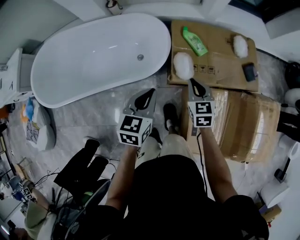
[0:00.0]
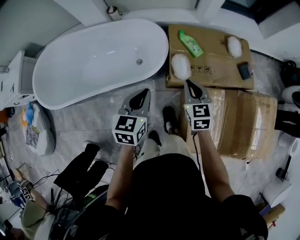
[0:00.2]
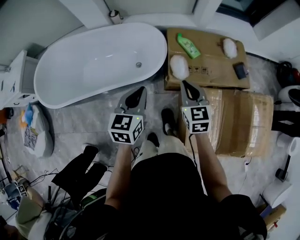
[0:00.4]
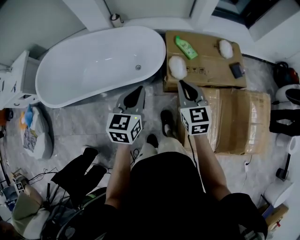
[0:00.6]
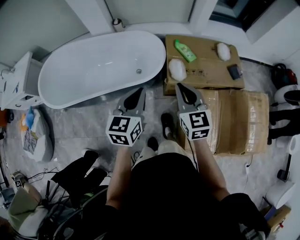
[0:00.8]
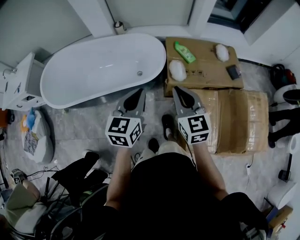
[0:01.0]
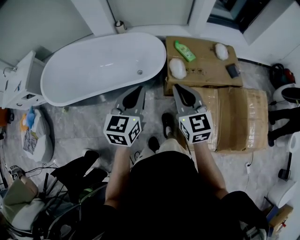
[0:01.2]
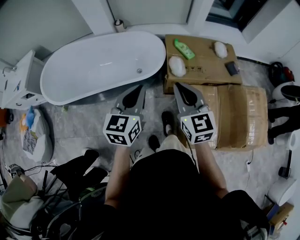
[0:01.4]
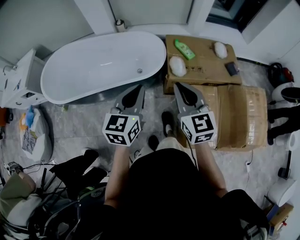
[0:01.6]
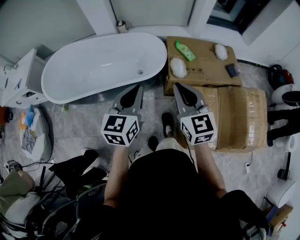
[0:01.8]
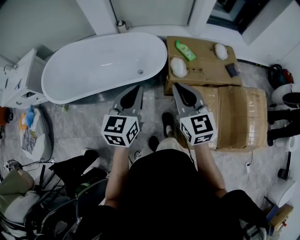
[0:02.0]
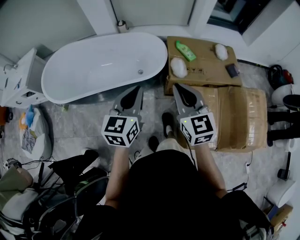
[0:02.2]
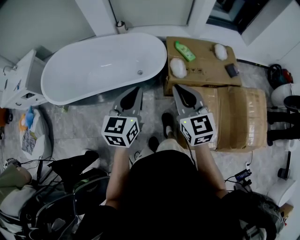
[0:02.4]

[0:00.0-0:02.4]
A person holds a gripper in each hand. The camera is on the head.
0:00.0 to 0:01.2: Both grippers travel together backward and upward, approximately 25 cm. The right gripper rotates approximately 20 degrees.
0:01.2 to 0:02.4: The right gripper is displaced backward by some 5 cm.

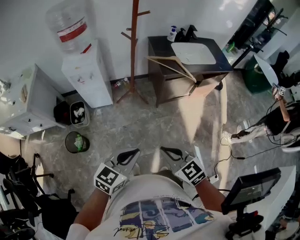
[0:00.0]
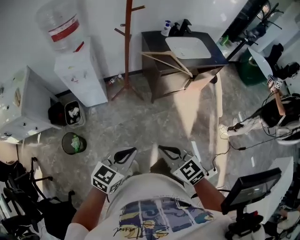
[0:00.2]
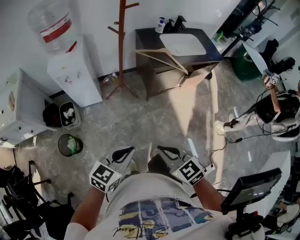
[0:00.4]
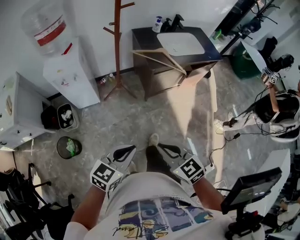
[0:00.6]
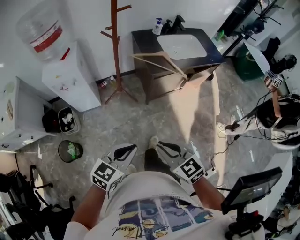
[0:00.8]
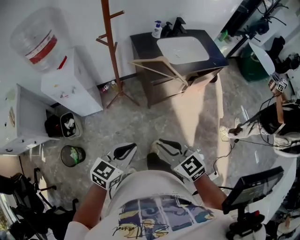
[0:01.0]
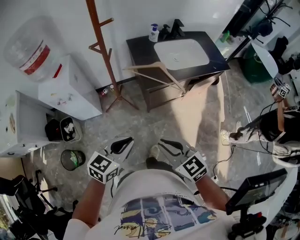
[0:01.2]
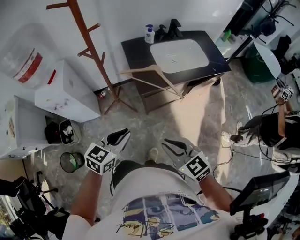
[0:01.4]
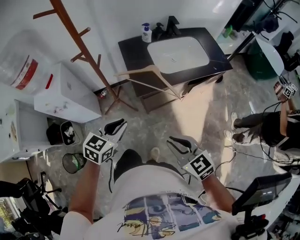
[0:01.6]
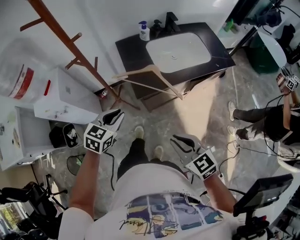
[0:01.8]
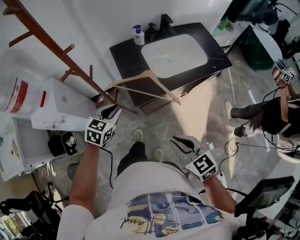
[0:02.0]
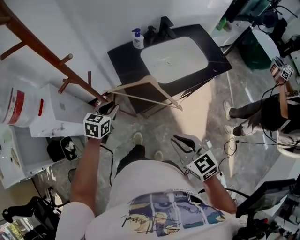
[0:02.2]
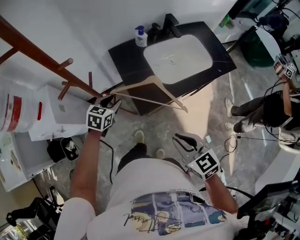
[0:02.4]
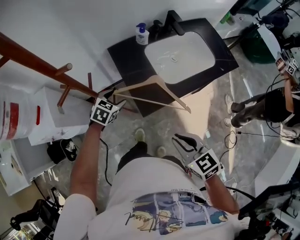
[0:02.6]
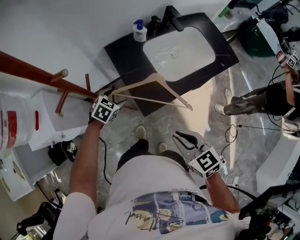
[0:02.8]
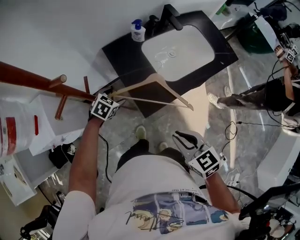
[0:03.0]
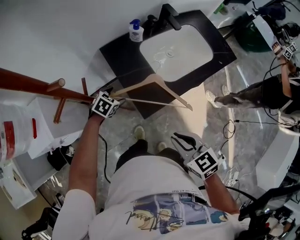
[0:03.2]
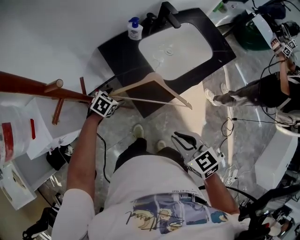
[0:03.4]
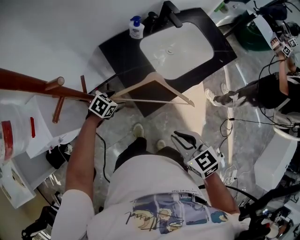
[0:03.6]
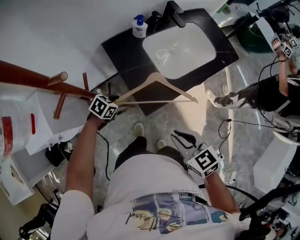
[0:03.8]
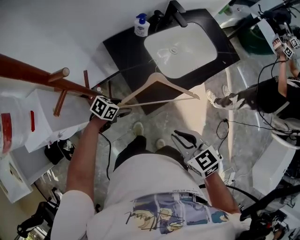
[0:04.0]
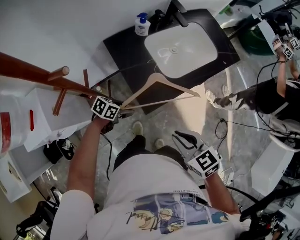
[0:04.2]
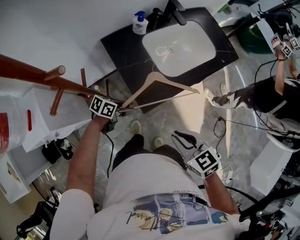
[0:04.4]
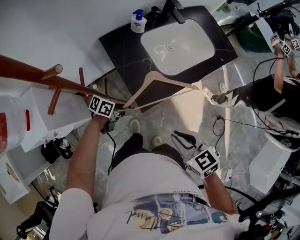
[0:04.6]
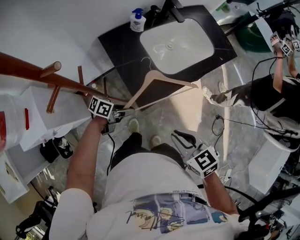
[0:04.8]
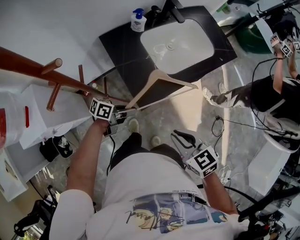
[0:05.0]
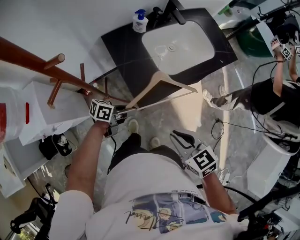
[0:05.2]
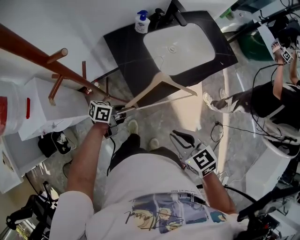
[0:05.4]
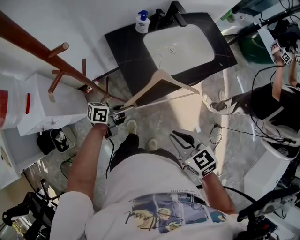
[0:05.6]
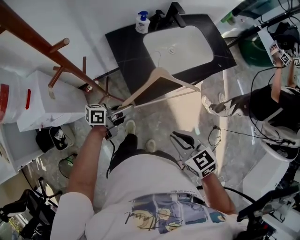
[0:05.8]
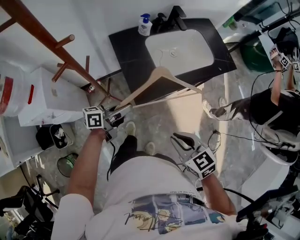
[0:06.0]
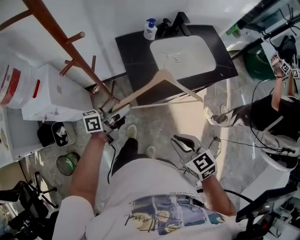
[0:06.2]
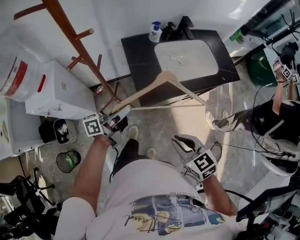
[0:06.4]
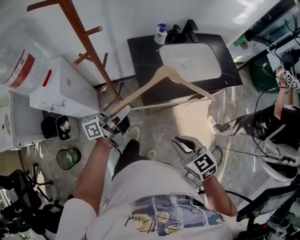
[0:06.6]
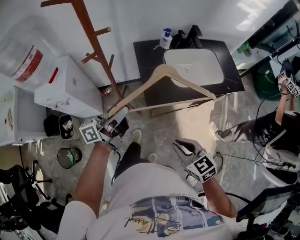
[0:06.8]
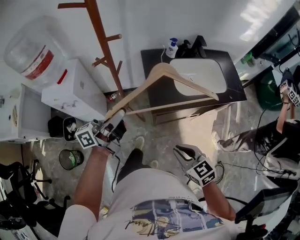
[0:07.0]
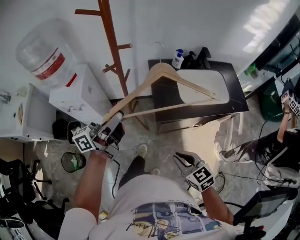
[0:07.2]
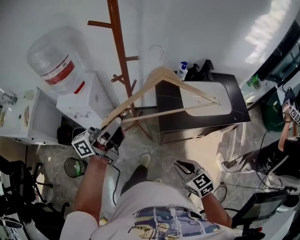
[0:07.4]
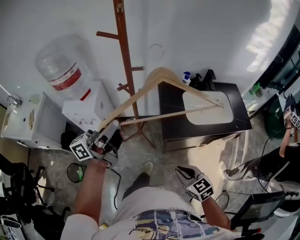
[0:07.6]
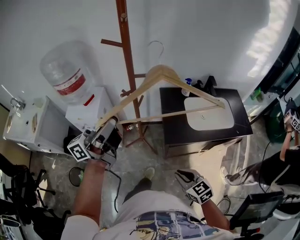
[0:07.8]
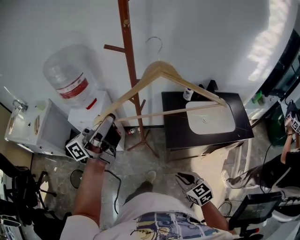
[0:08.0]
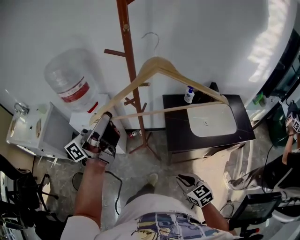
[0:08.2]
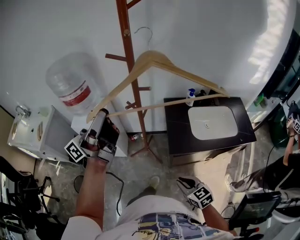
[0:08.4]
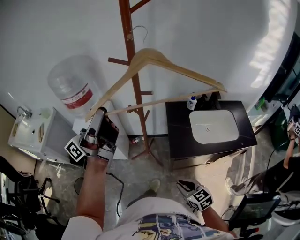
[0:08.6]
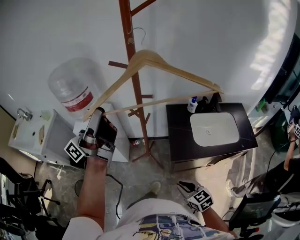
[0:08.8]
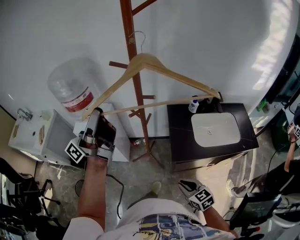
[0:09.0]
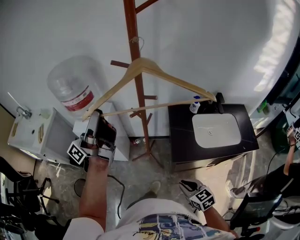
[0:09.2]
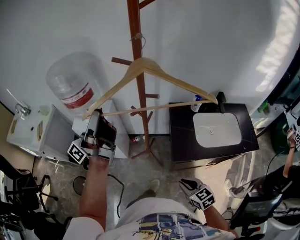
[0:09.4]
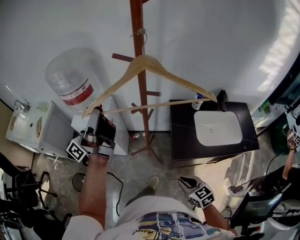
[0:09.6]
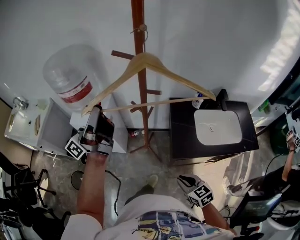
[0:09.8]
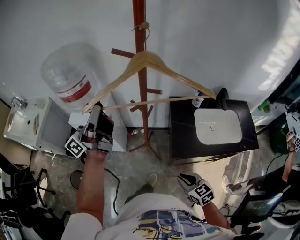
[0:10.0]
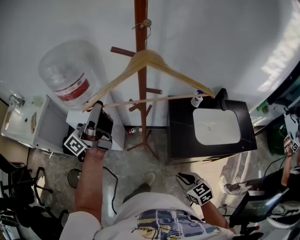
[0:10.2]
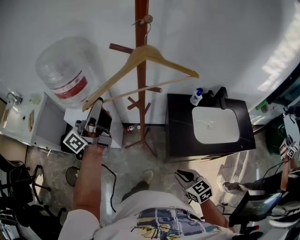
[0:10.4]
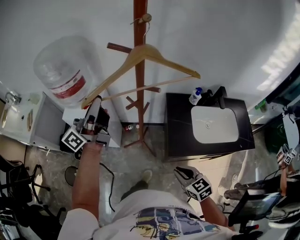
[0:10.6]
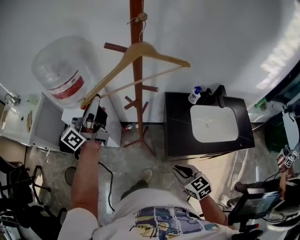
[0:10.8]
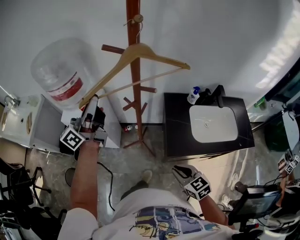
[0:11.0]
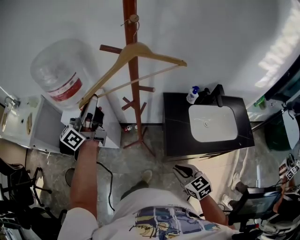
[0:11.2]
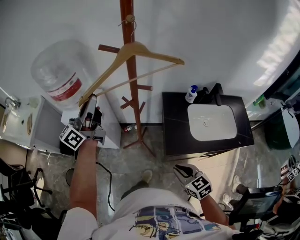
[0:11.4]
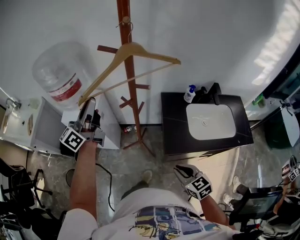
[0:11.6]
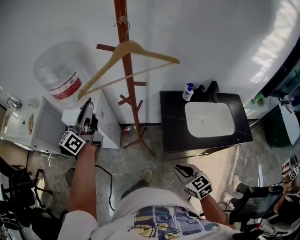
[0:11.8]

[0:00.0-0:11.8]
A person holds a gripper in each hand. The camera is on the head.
0:00.0 to 0:01.4: The left gripper goes about 30 cm forward, while the right gripper travels forward and to the right by approximately 25 cm.
0:01.4 to 0:03.0: The right gripper travels forward by roughly 20 cm, and turns by some 20 degrees. The left gripper travels forward and downward by about 40 cm, tips its fingers downward by approximately 30 degrees, and opens up.
0:03.0 to 0:04.4: The left gripper ends up roughly 10 cm from where it was, swivels some 50 degrees, and closes up.
0:04.4 to 0:06.0: The right gripper ends up approximately 5 cm from where it was, while the left gripper goes some 15 cm upward, turns by about 40 degrees, and closes its fingers.
0:06.0 to 0:07.4: The left gripper travels upward and to the left by about 30 cm, and changes its angle by about 40 degrees; the right gripper ends up about 5 cm from where it was.
0:07.4 to 0:08.8: The left gripper shifts approximately 20 cm upward and to the left, and changes its angle by about 20 degrees.
0:08.8 to 0:10.4: The right gripper is displaced forward by about 5 cm. Meanwhile the left gripper shifts approximately 15 cm forward and downward.
0:10.4 to 0:11.8: The left gripper changes its angle by roughly 30 degrees.

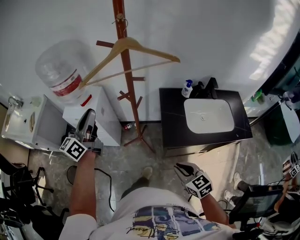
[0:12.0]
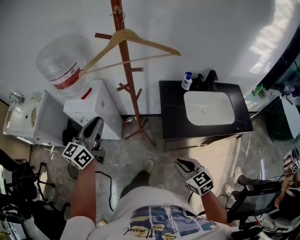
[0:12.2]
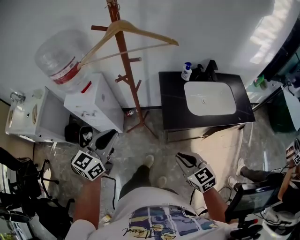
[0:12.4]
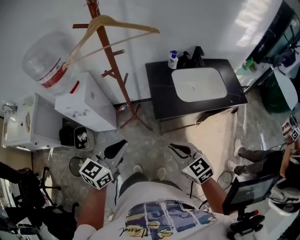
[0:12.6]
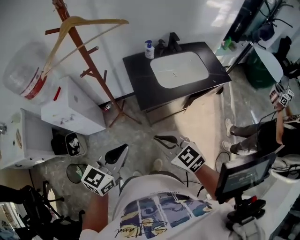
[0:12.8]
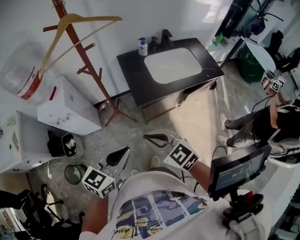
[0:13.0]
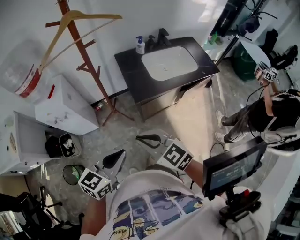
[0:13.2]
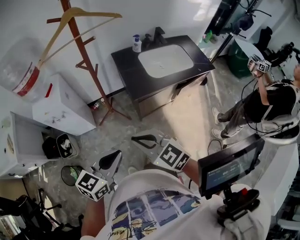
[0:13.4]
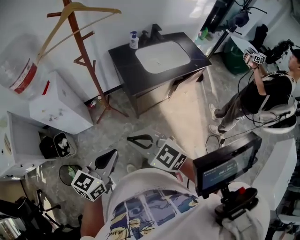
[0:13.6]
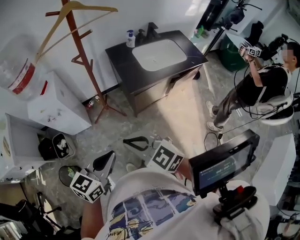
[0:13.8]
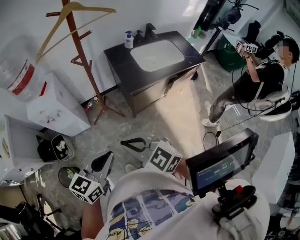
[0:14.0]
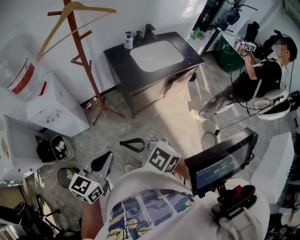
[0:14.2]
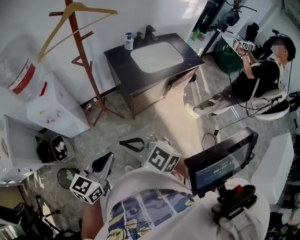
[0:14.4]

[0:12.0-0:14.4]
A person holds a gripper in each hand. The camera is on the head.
0:12.0 to 0:13.2: The left gripper travels backward and to the right by some 35 cm, and angles its fingers downward, by about 30 degrees; the right gripper is displaced to the left, backward and upward by about 20 cm.
0:13.2 to 0:14.4: Both grippers travel together to the left and backward, some 10 cm.

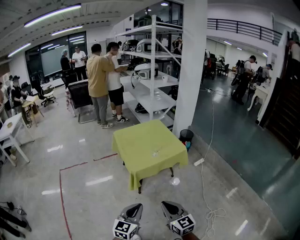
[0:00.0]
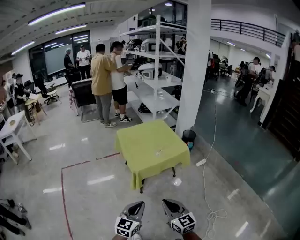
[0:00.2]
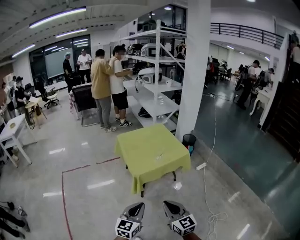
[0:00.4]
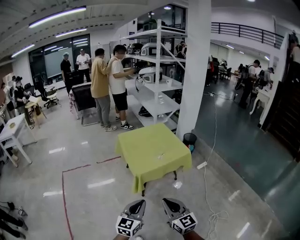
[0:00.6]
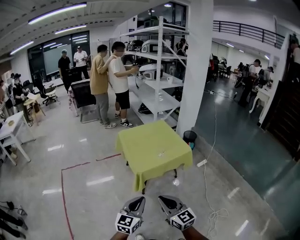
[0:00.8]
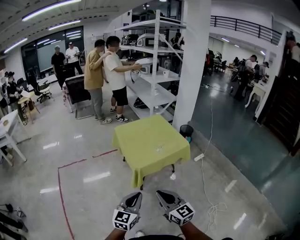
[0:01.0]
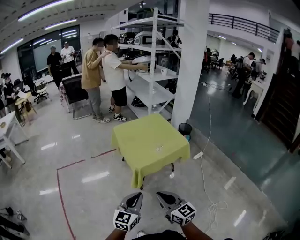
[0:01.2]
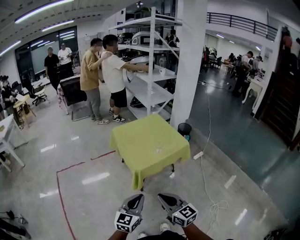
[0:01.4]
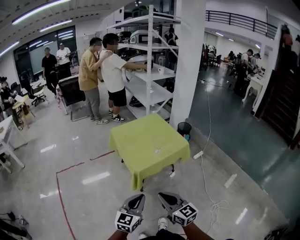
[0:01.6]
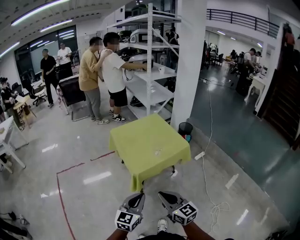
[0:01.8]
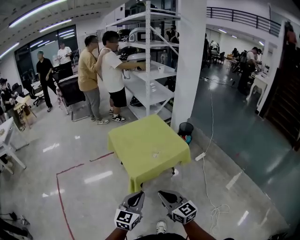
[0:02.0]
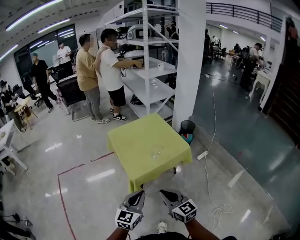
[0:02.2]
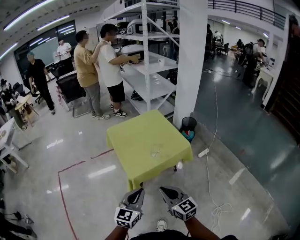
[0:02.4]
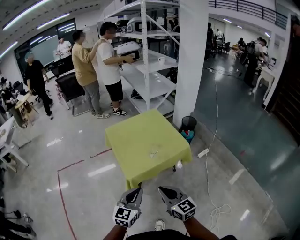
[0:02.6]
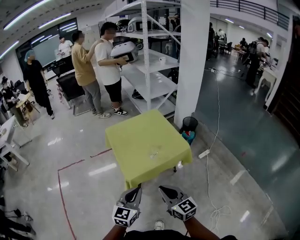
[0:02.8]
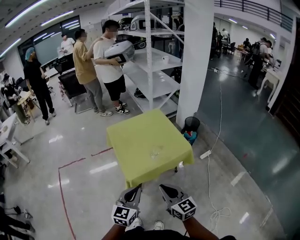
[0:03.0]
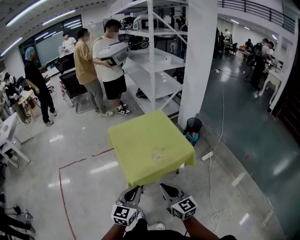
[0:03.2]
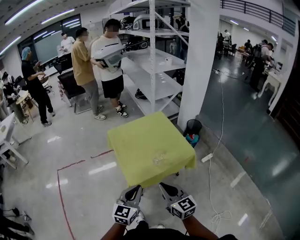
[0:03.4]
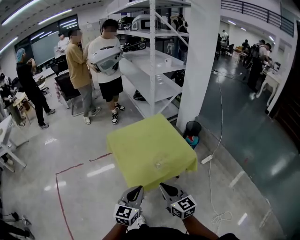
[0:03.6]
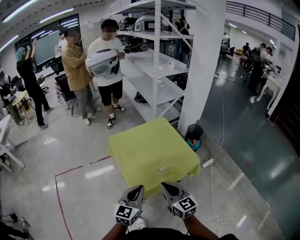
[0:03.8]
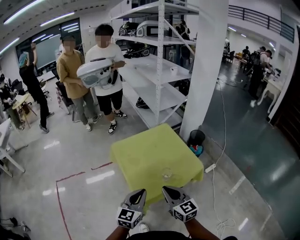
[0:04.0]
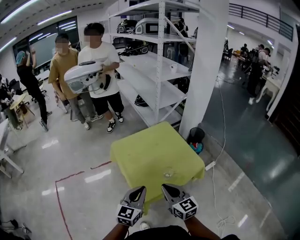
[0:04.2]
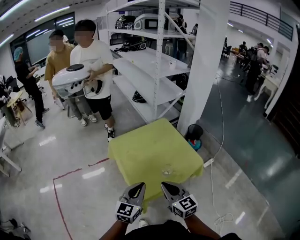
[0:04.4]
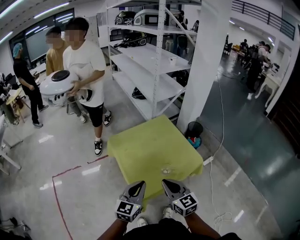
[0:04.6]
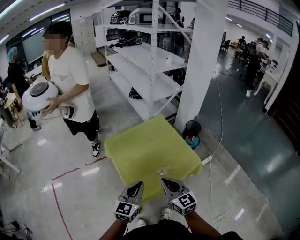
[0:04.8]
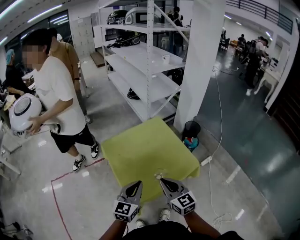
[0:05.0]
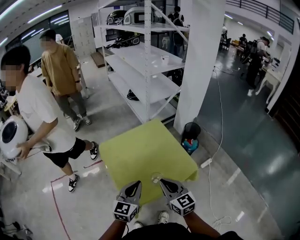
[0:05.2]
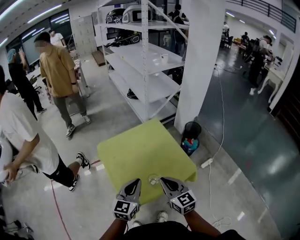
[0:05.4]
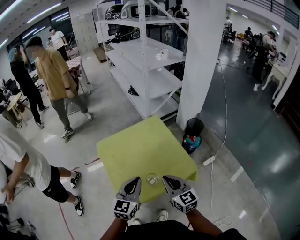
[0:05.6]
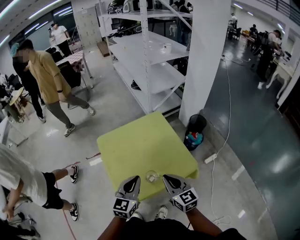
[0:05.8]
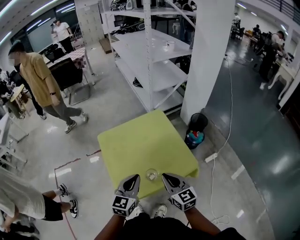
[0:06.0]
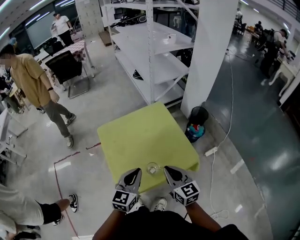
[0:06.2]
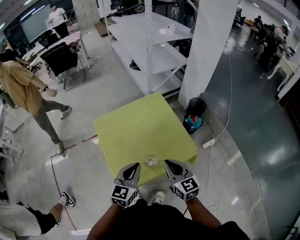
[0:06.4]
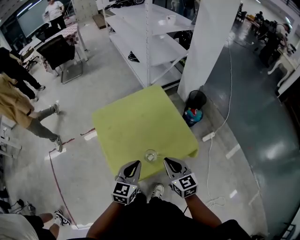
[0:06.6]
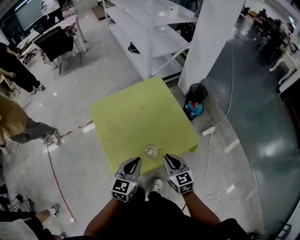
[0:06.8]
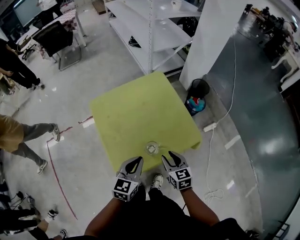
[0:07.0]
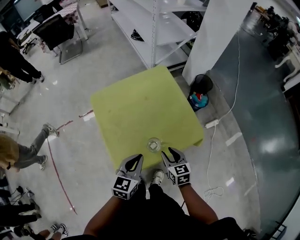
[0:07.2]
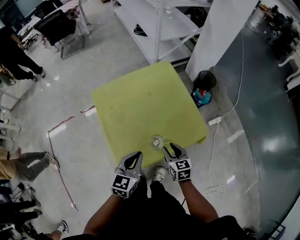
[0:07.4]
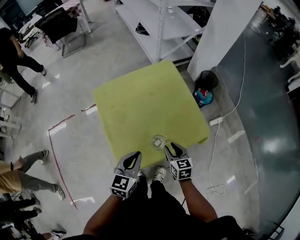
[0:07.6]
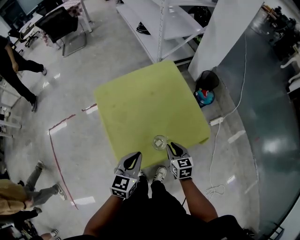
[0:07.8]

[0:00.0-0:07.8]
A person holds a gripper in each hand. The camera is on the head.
0:00.0 to 0:01.6: The left gripper moves forward, about 10 cm. The right gripper heads forward and to the left, covering approximately 10 cm.
0:01.6 to 0:03.2: The two grippers go roughly 20 cm forward and to the right.
0:03.2 to 0:04.6: The grippers both shift forward and to the left by roughly 20 cm.
0:04.6 to 0:06.2: Both grippers travel together to the right and forward, some 15 cm.
0:06.2 to 0:07.8: The left gripper is displaced downward by some 10 cm; the right gripper heads downward, covering some 20 cm, and changes its angle by roughly 30 degrees.
